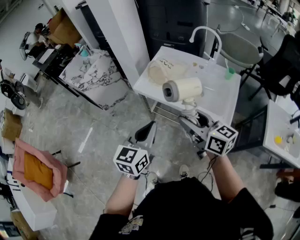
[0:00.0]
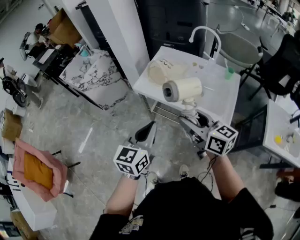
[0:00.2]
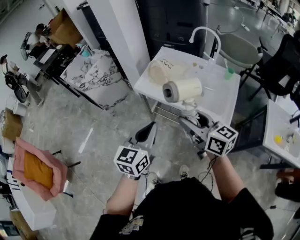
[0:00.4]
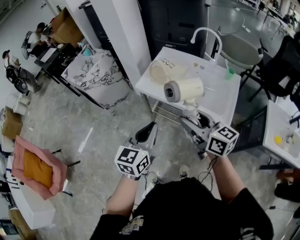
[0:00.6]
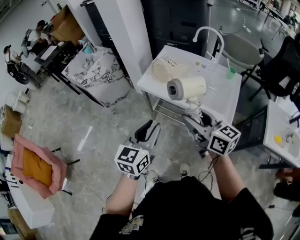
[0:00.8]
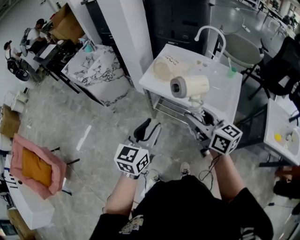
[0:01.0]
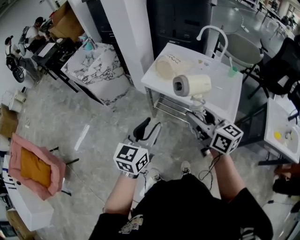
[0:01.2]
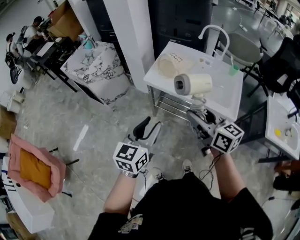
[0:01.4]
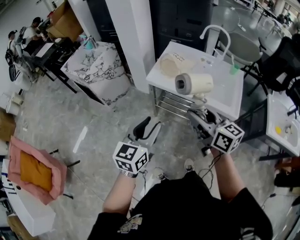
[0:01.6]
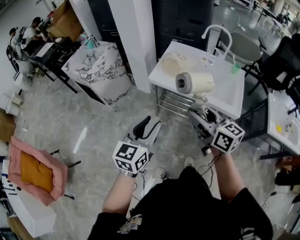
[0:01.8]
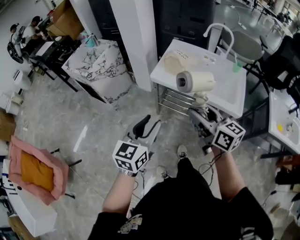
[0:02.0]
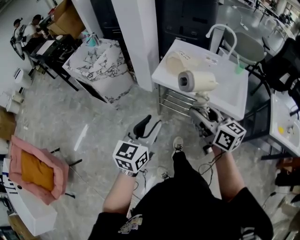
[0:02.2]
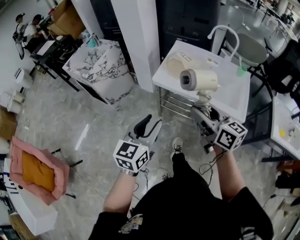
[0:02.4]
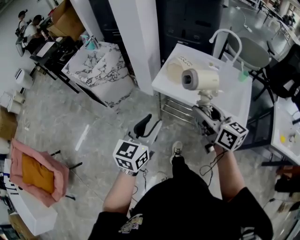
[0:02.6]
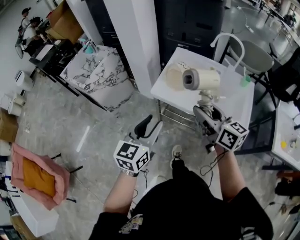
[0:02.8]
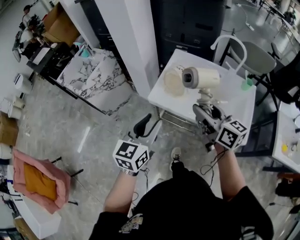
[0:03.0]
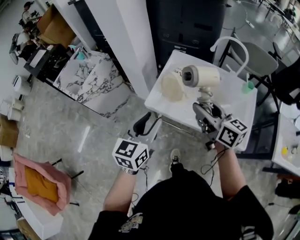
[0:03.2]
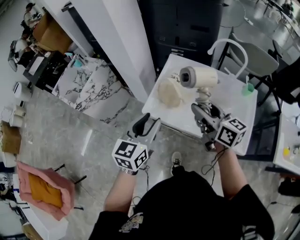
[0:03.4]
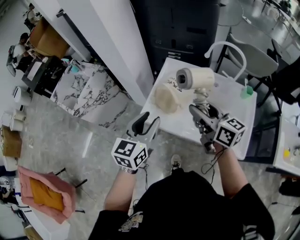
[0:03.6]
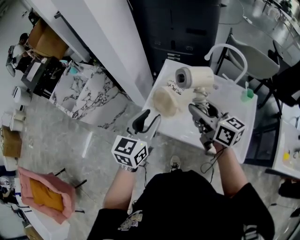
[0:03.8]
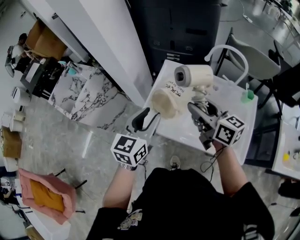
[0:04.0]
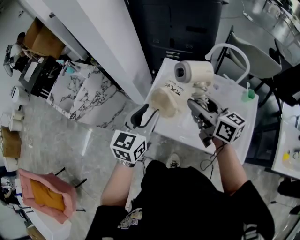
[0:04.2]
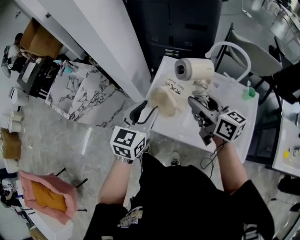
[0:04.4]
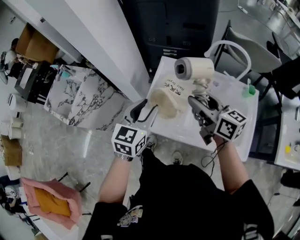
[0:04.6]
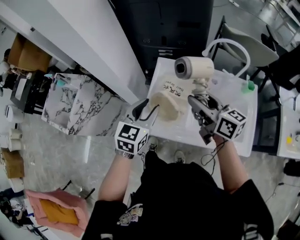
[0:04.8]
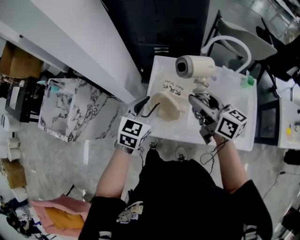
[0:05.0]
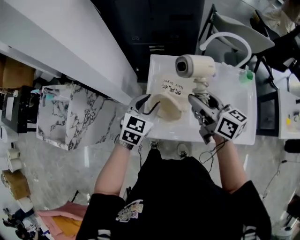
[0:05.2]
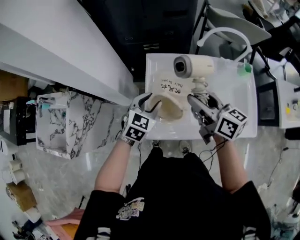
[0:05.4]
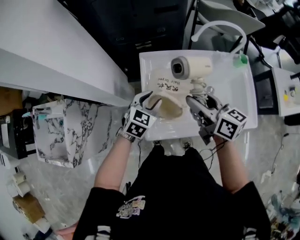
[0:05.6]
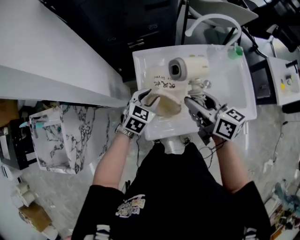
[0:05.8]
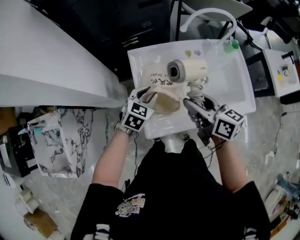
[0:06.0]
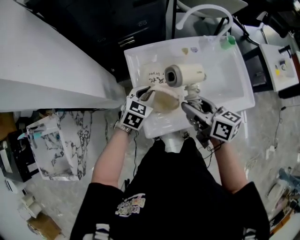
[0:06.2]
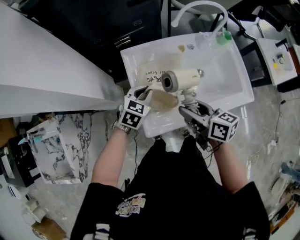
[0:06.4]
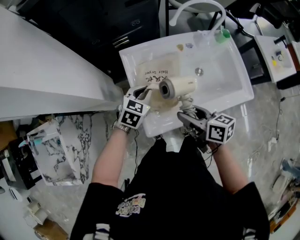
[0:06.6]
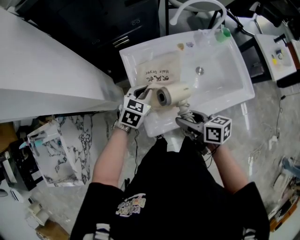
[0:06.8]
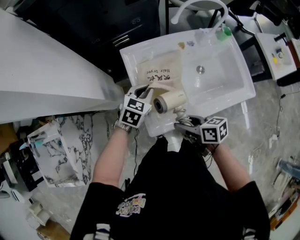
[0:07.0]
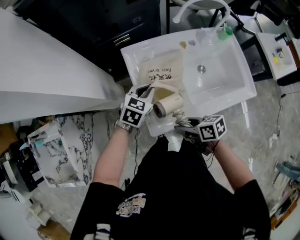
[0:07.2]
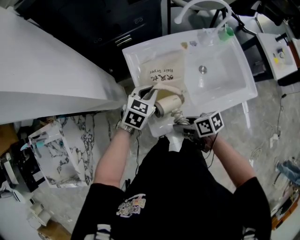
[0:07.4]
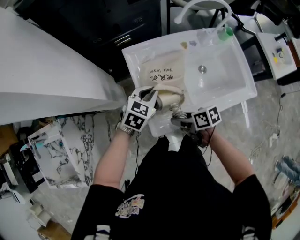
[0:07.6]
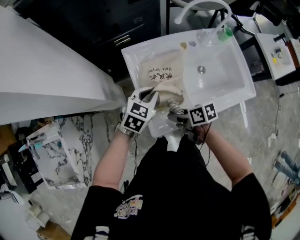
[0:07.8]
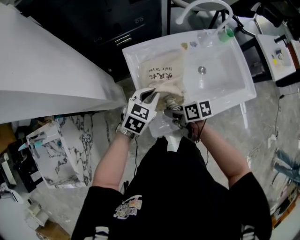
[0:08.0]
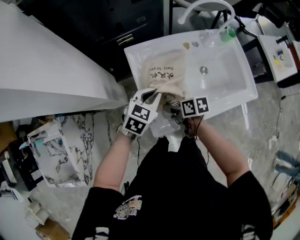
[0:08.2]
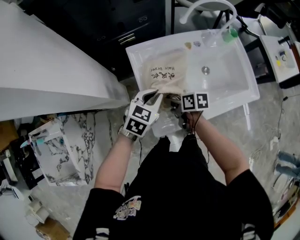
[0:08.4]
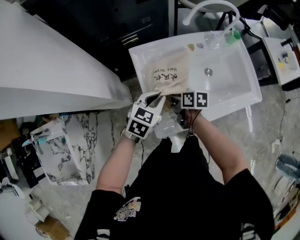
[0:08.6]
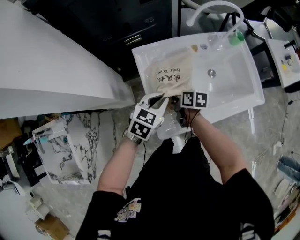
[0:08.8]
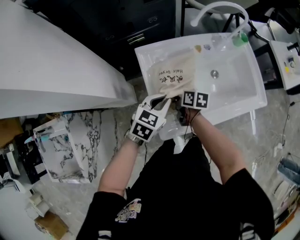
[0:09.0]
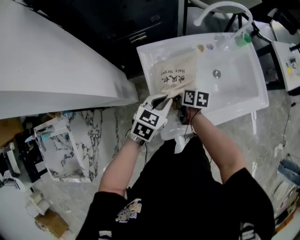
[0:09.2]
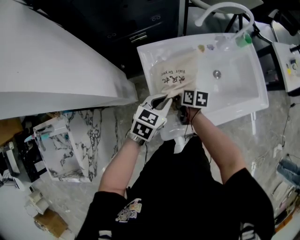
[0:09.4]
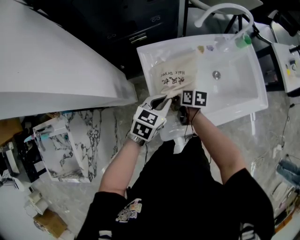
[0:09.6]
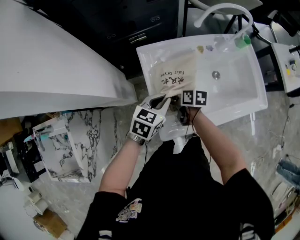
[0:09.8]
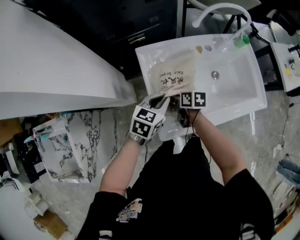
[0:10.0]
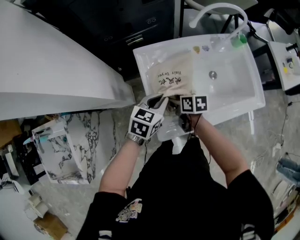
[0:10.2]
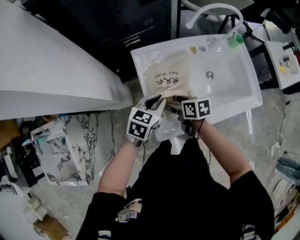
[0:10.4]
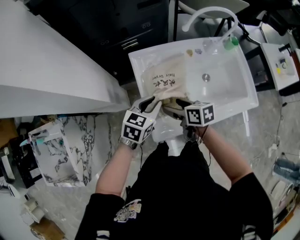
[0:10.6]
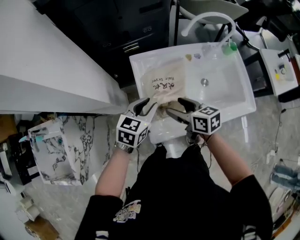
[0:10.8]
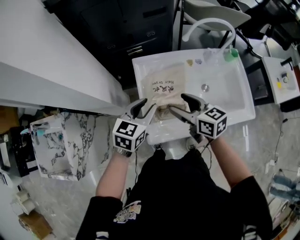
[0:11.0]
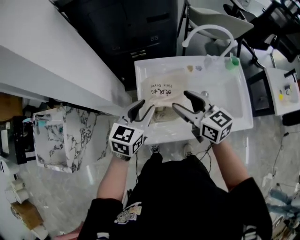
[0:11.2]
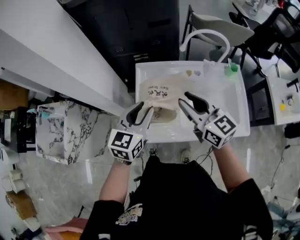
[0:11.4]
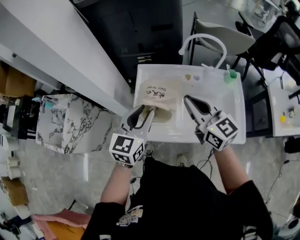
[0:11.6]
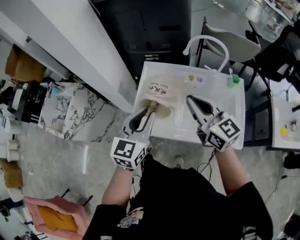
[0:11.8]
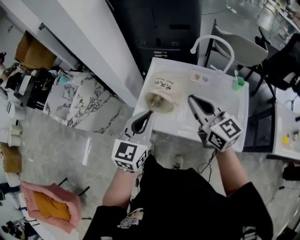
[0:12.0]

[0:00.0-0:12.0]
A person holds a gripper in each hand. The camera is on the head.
0.0 to 1.6 s: The grippers both shift to the left by approximately 10 cm. The left gripper opens.
1.6 to 3.0 s: Both grippers move forward, about 20 cm.
3.0 to 4.4 s: The two grippers go roughly 20 cm forward.
4.4 to 6.0 s: The right gripper moves downward, roughly 10 cm, and swivels approximately 30 degrees, while the left gripper goes some 20 cm downward, and rotates about 50 degrees.
6.0 to 7.6 s: The left gripper closes up. The right gripper is displaced downward and backward by approximately 20 cm, and changes its angle by roughly 40 degrees.
7.6 to 9.0 s: The right gripper is displaced forward by some 15 cm, and changes its angle by roughly 30 degrees.
9.0 to 10.4 s: The right gripper ends up some 5 cm from where it was, and opens.
10.4 to 12.0 s: The two grippers go some 25 cm upward. The right gripper points its fingers some 40 degrees further upward, and closes. The left gripper changes its angle by roughly 50 degrees.

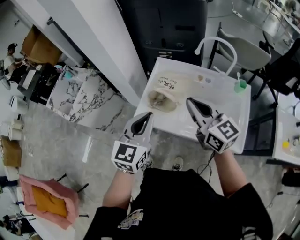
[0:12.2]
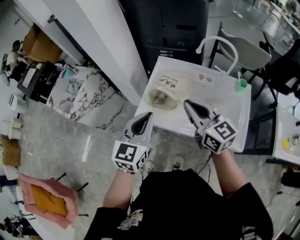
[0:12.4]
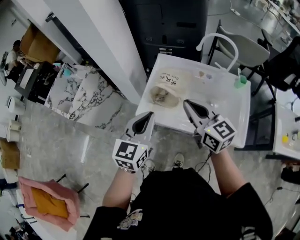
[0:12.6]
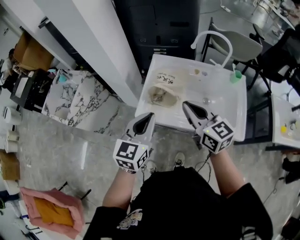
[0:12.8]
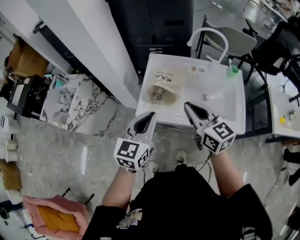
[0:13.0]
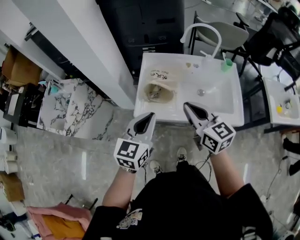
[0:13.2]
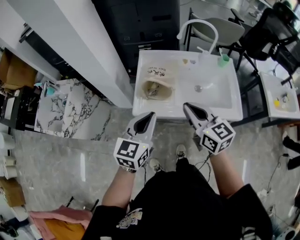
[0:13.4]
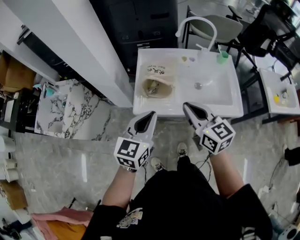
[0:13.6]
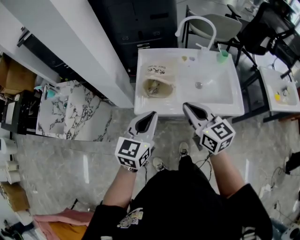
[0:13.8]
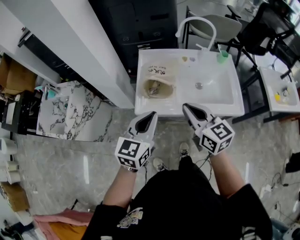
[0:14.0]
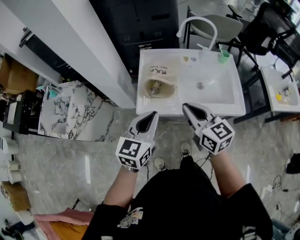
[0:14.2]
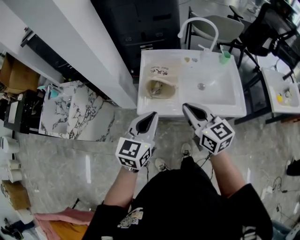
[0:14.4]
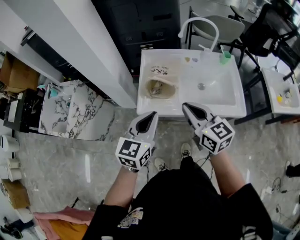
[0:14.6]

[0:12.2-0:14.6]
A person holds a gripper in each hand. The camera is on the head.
12.2 to 13.4 s: The left gripper ends up roughly 5 cm from where it was, while the right gripper moves backward and to the left, about 10 cm.
13.4 to 14.6 s: The grippers move only a little.

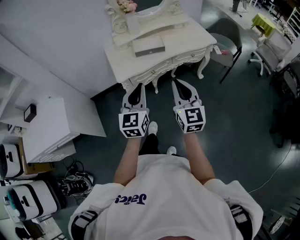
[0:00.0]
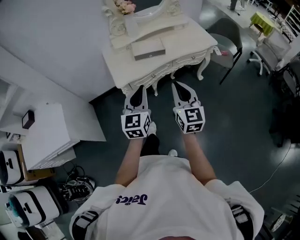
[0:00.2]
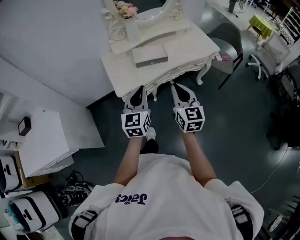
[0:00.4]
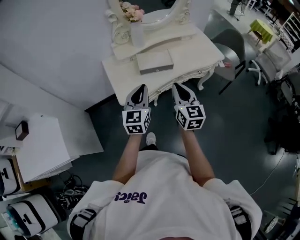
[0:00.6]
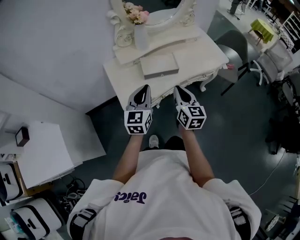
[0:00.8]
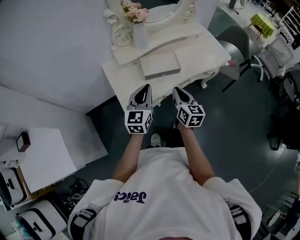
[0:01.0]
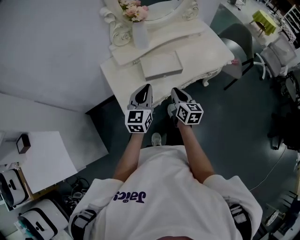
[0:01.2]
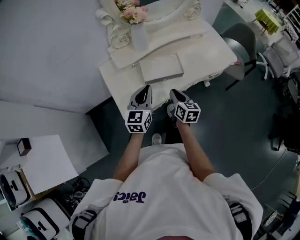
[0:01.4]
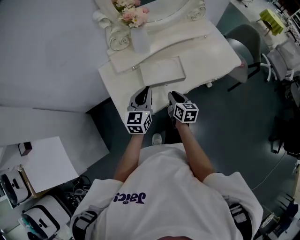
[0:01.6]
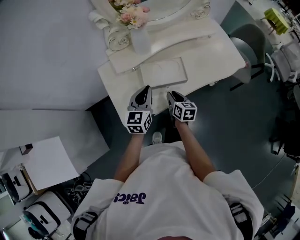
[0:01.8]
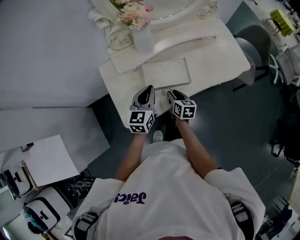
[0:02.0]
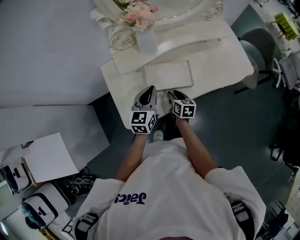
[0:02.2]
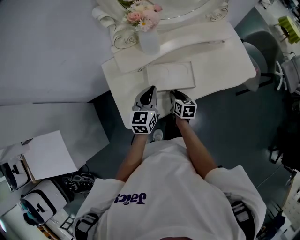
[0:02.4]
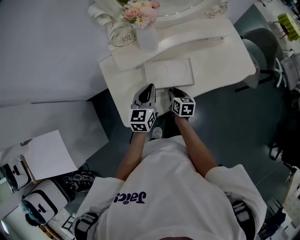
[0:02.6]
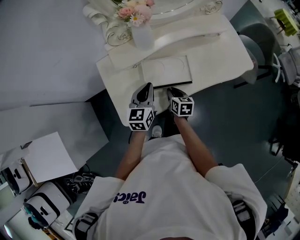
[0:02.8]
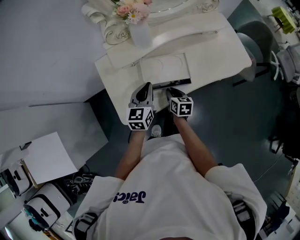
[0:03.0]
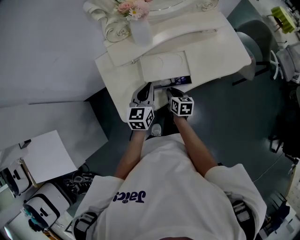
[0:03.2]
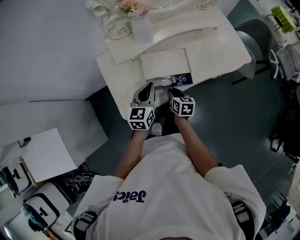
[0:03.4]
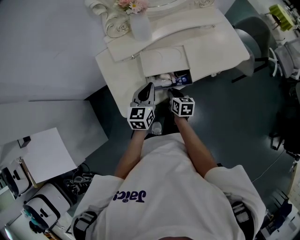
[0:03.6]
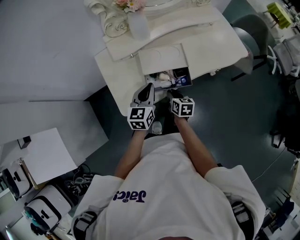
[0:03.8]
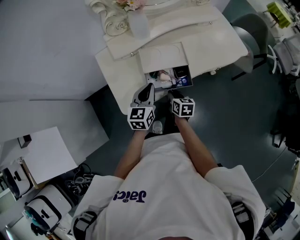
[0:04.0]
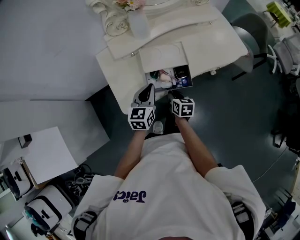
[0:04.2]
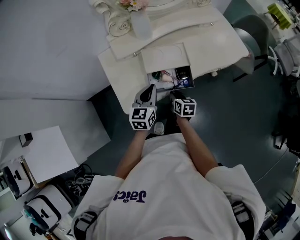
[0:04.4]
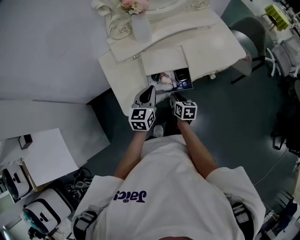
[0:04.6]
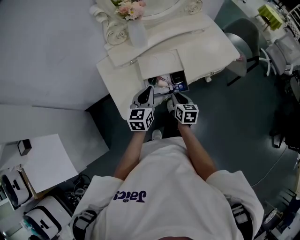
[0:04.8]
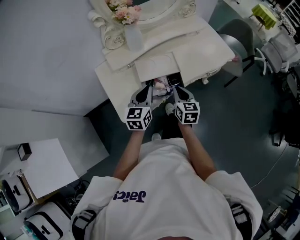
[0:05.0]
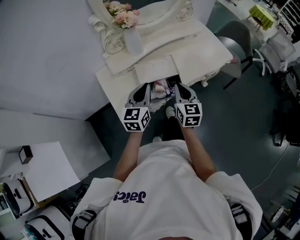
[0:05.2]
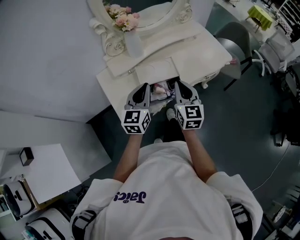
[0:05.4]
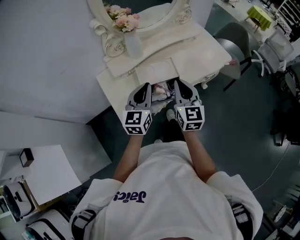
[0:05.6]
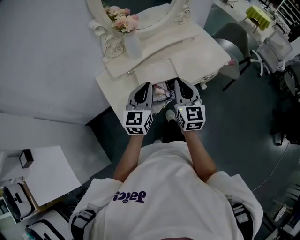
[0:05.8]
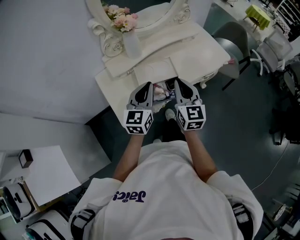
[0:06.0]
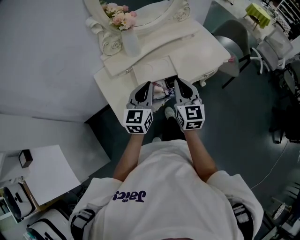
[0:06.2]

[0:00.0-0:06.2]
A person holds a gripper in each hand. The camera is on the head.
0.0 to 1.6 s: The two grippers go roughly 50 cm forward and downward. The right gripper changes its angle by about 40 degrees.
1.6 to 3.2 s: The grippers both shift downward by approximately 5 cm.
3.2 to 4.6 s: The two grippers go about 5 cm backward.
4.6 to 6.2 s: The left gripper heads upward, covering roughly 15 cm. The right gripper travels upward by about 25 cm, and tilts its fingers about 30 degrees upward.

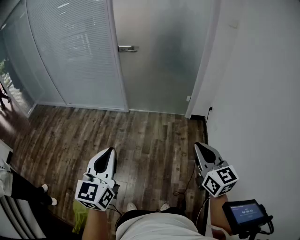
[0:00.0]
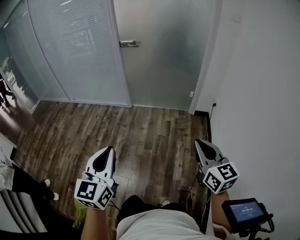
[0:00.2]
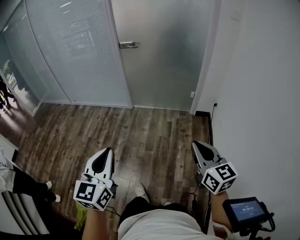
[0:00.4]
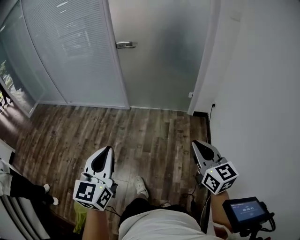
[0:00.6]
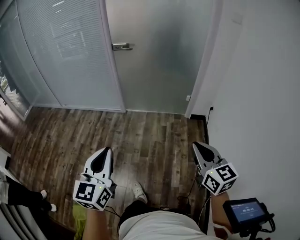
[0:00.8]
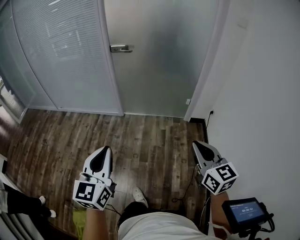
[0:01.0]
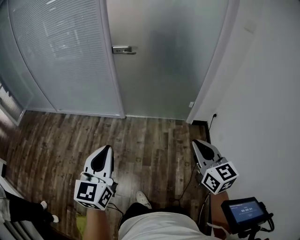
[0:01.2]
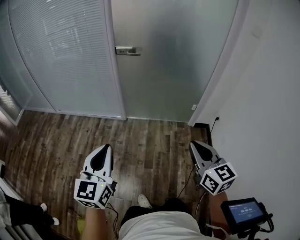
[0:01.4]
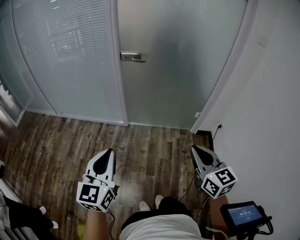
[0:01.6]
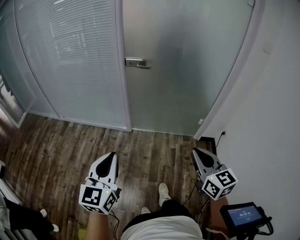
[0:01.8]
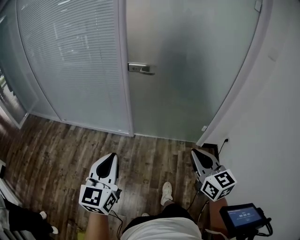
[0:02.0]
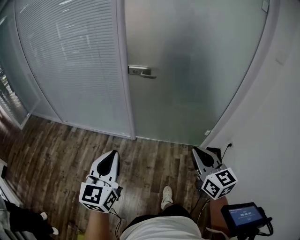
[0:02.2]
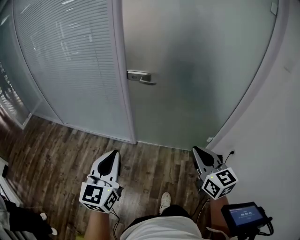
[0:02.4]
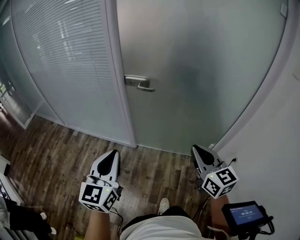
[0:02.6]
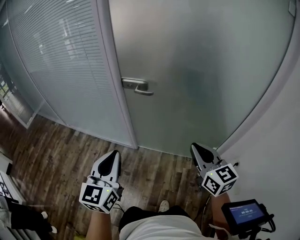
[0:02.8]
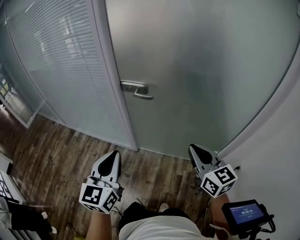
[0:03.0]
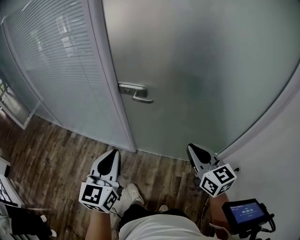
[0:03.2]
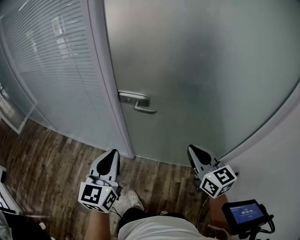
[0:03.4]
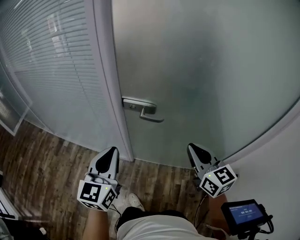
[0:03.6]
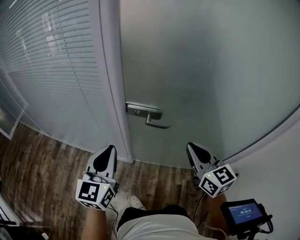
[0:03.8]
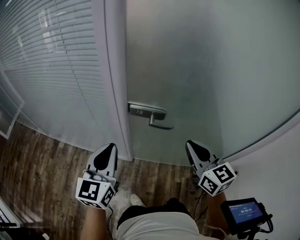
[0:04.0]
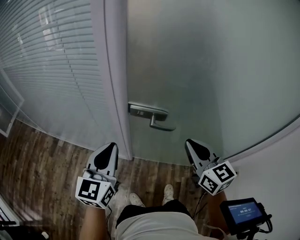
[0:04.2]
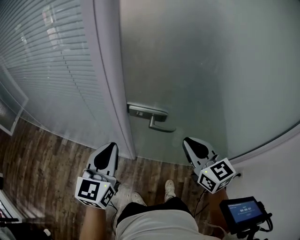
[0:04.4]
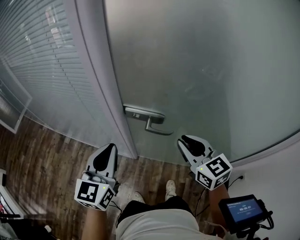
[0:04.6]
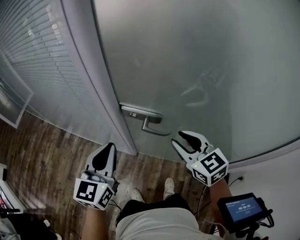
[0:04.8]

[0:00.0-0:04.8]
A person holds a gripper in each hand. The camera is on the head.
0.0 to 1.6 s: The two grippers go some 30 cm forward.
1.6 to 3.2 s: The two grippers go about 40 cm forward.
3.2 to 4.8 s: The left gripper travels forward by approximately 20 cm. The right gripper goes some 25 cm forward and to the left, swivels some 20 degrees, and opens its fingers.
